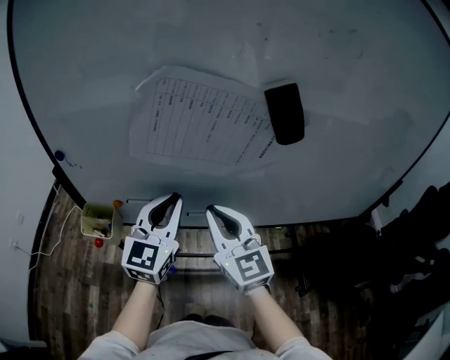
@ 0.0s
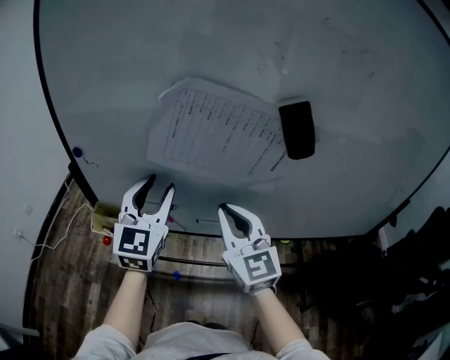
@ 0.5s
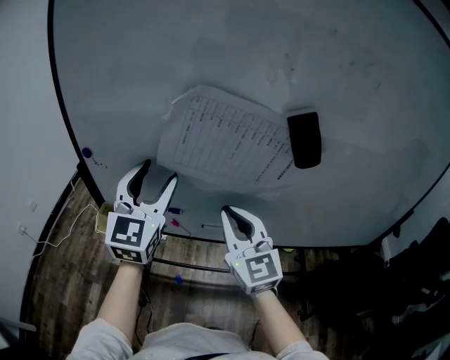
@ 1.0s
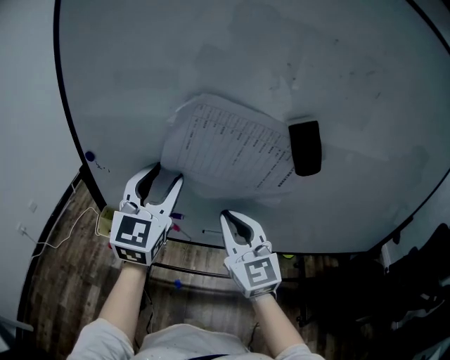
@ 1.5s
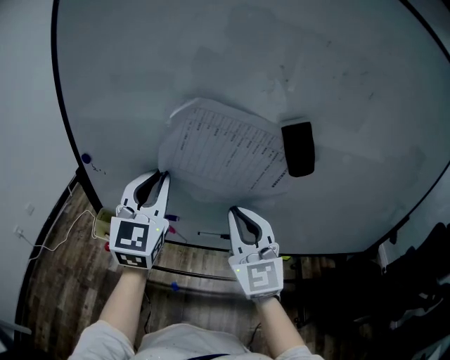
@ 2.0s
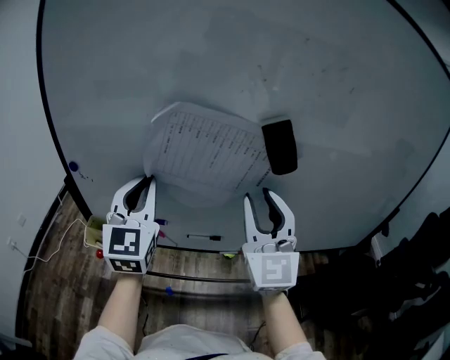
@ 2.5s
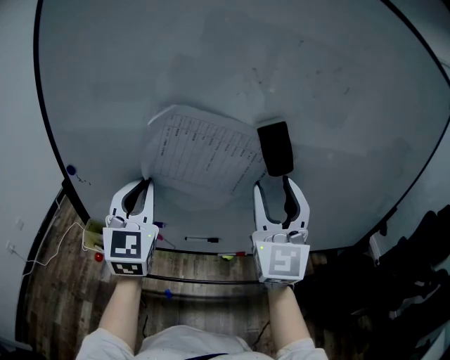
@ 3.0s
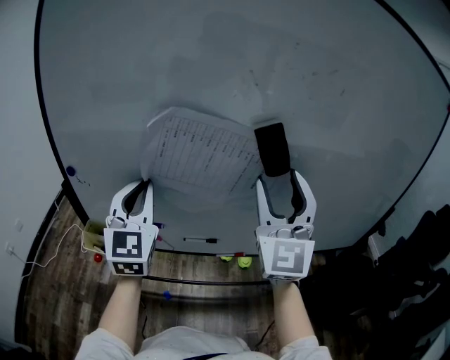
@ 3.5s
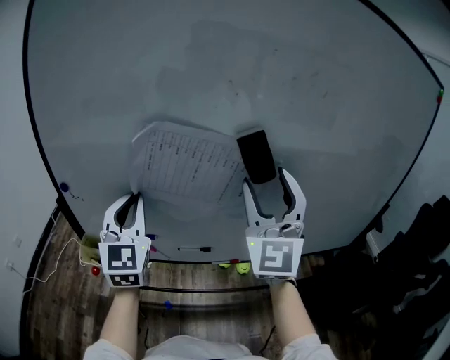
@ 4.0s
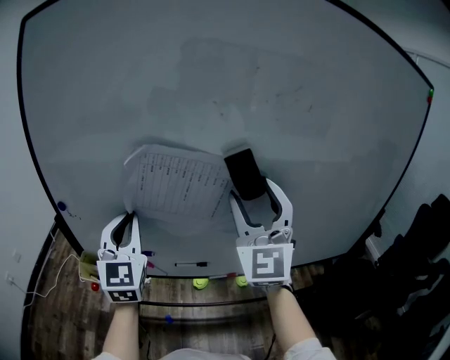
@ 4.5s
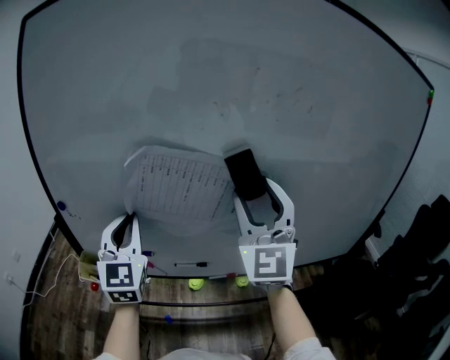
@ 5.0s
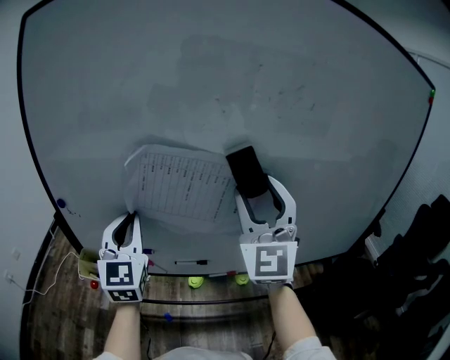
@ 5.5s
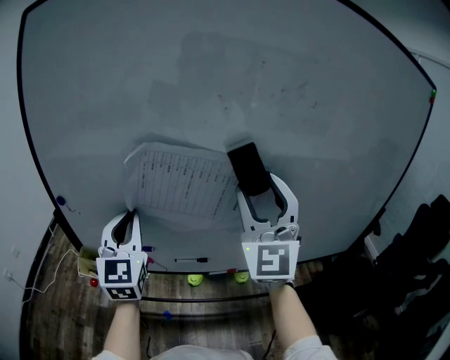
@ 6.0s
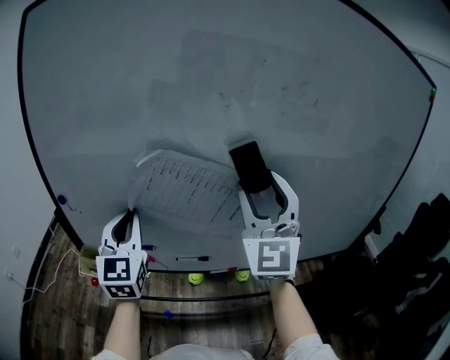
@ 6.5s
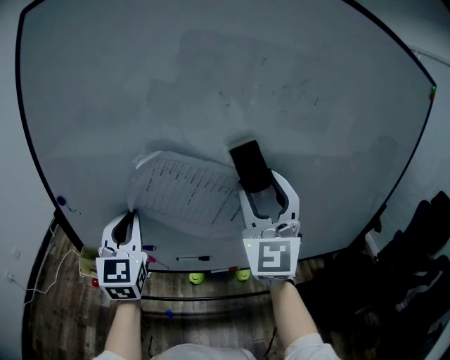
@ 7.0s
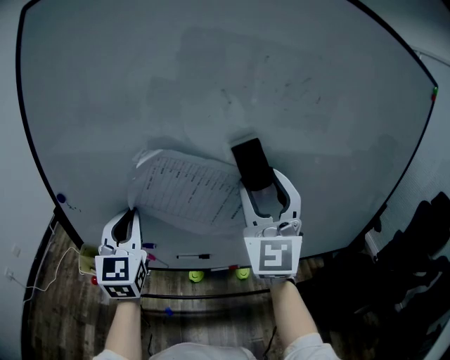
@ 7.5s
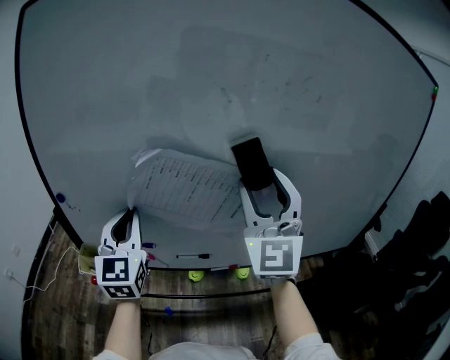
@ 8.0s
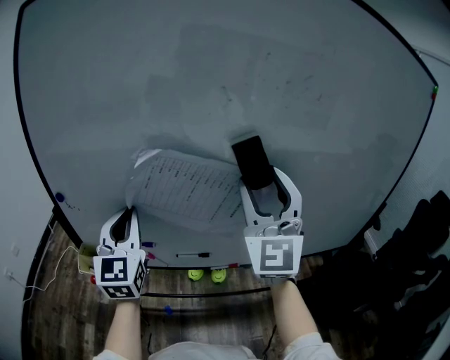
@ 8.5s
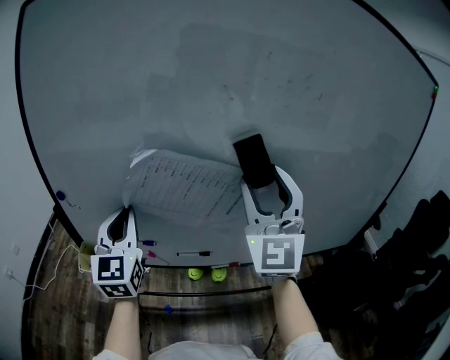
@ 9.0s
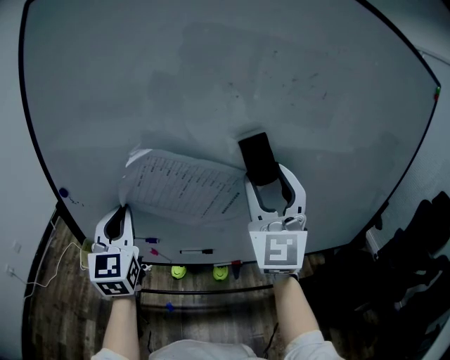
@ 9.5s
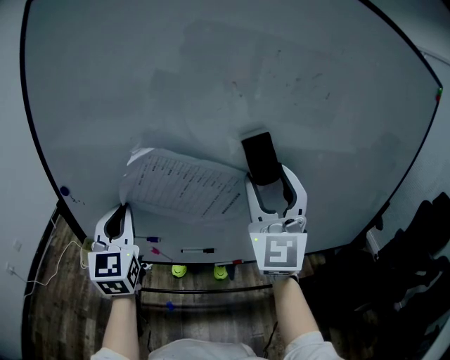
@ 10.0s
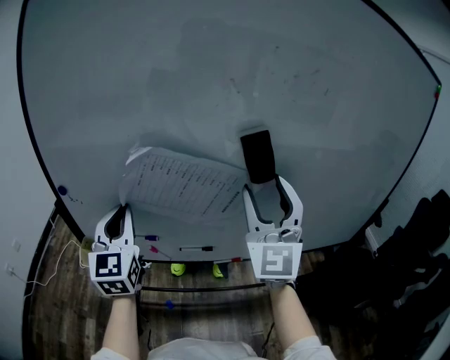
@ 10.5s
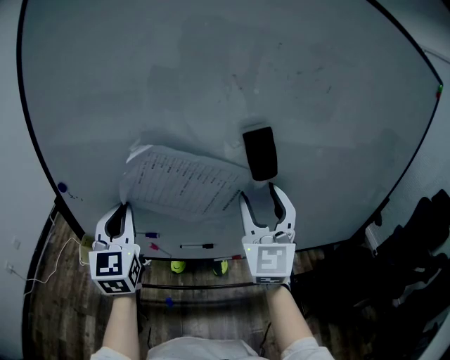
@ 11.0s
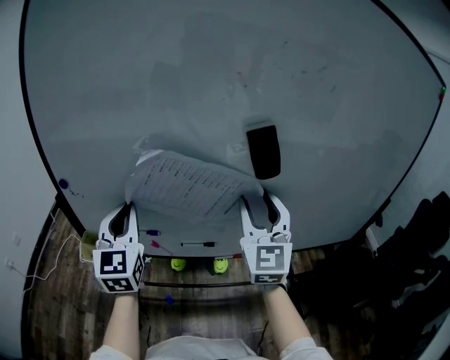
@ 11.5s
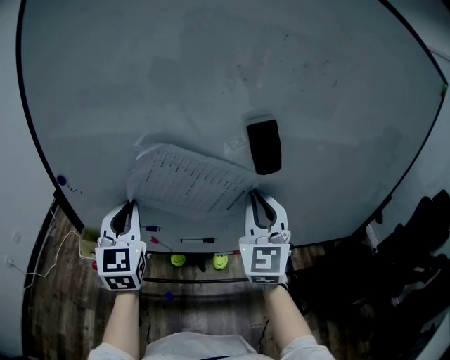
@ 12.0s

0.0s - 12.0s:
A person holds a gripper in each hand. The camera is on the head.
0.0s - 2.0s: The left gripper heads upward and to the left, covering approximately 15 cm, and opens and closes again, while the right gripper moves upward, some 5 cm.
2.0s - 4.0s: The right gripper shifts some 15 cm upward and to the right, turns by some 30 degrees, and opens up.
4.0s - 10.0s: The grippers make only small movements.
10.0s - 12.0s: The right gripper goes roughly 10 cm downward, and closes its fingers.

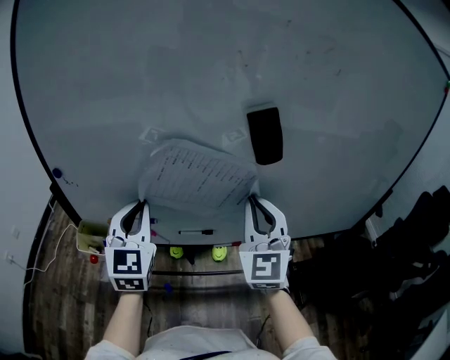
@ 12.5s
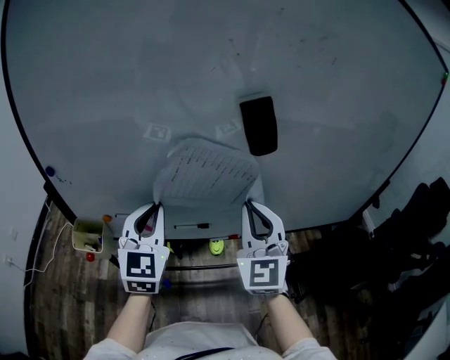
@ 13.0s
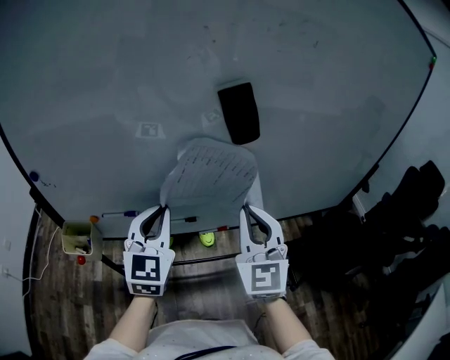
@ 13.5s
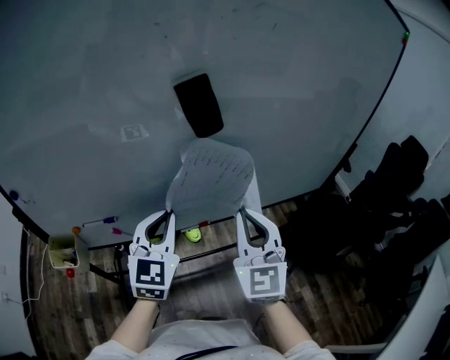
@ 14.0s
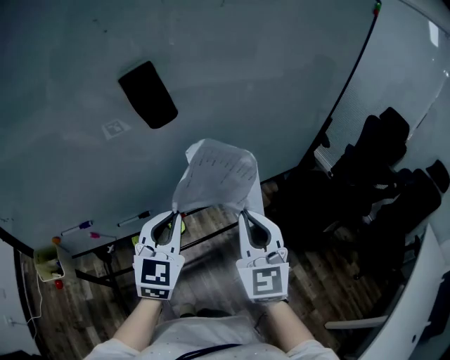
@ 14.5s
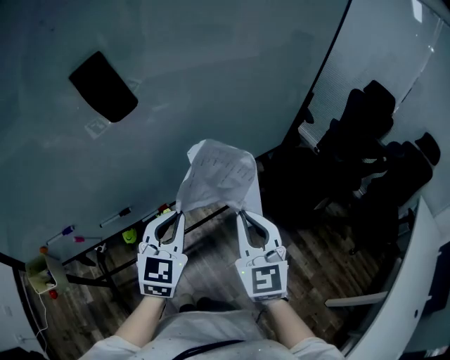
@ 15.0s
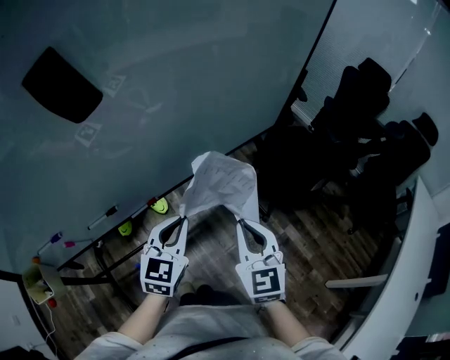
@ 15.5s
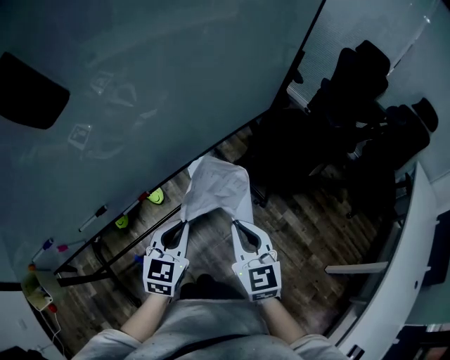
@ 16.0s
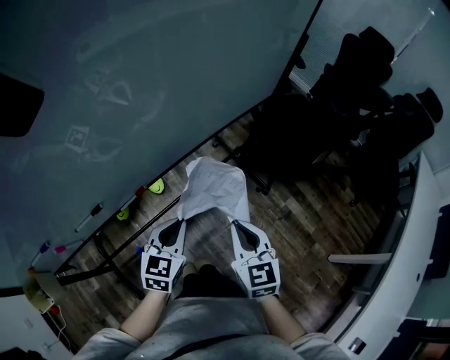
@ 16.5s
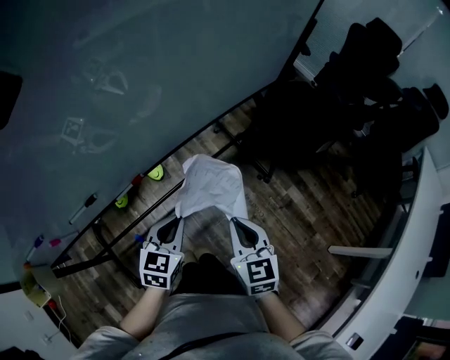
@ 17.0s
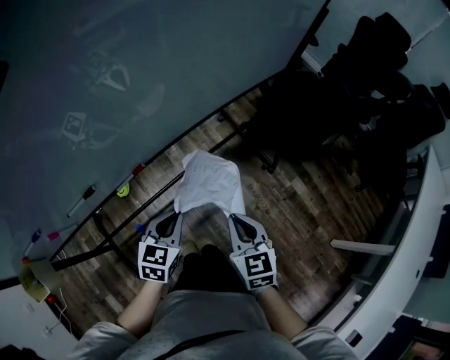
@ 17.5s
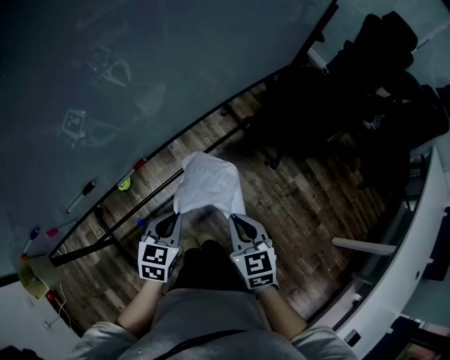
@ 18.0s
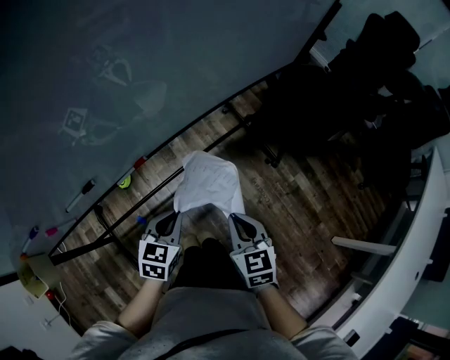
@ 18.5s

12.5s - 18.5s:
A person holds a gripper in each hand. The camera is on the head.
12.5s - 14.5s: The left gripper changes place by approximately 30 cm, and changes its angle by roughly 40 degrees. The right gripper changes place by roughly 20 cm.
14.5s - 16.5s: The two grippers go approximately 25 cm downward and to the right. The right gripper changes its angle by roughly 40 degrees. The left gripper swivels approximately 30 degrees.
16.5s - 18.5s: The two grippers go some 10 cm downward.

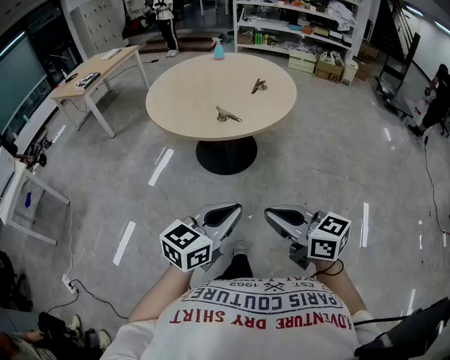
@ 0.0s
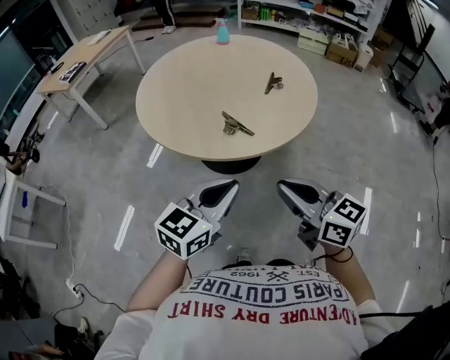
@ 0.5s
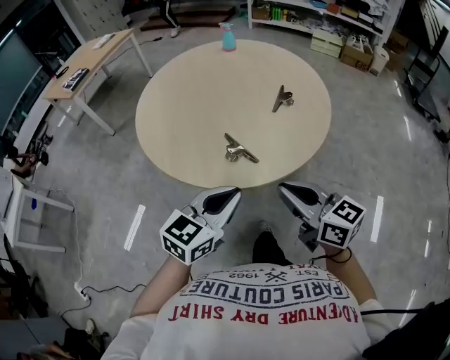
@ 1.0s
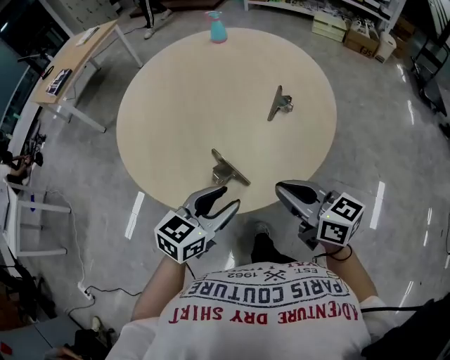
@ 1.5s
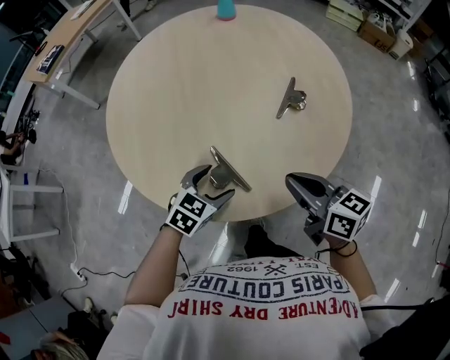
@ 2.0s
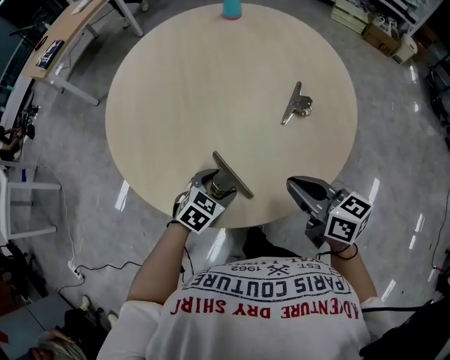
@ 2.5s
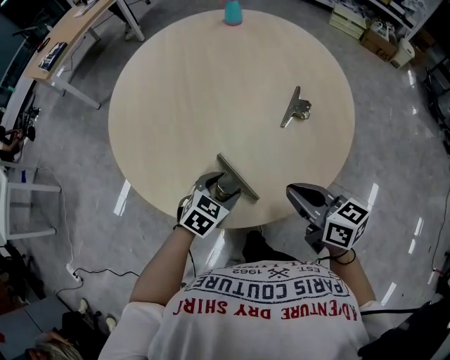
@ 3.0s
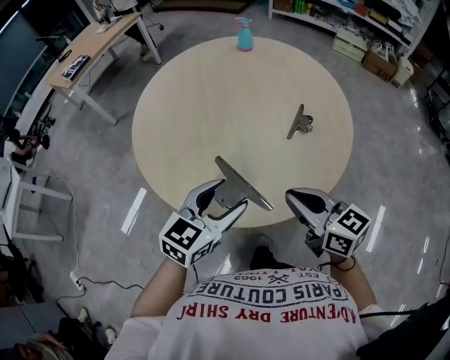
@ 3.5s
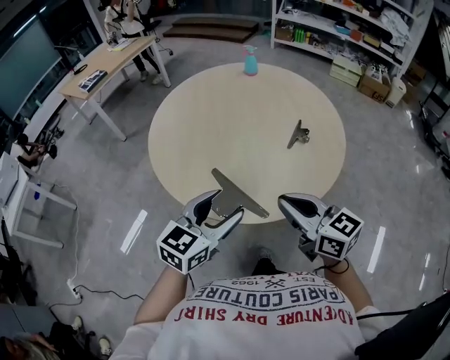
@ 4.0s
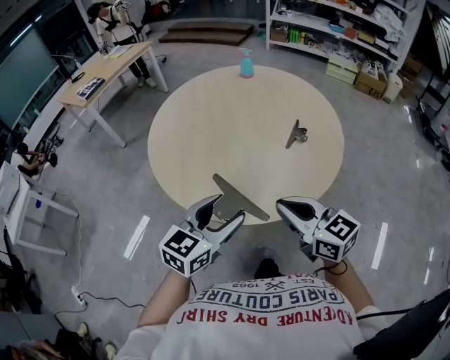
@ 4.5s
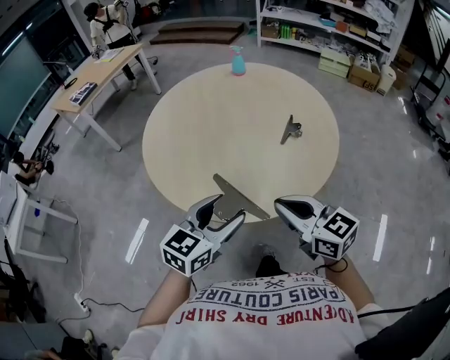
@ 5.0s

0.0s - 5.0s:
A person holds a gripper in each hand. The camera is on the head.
0.0s - 2.5s: The two grippers travel together, forward, approximately 60 cm. The left gripper travels downward by roughly 25 cm, points its fingers approximately 40 degrees further downward, and opens up.
2.5s - 5.0s: The left gripper heads upward and backward, covering some 25 cm, and angles its fingers upward, by about 30 degrees. The right gripper heads backward, upward and to the left, covering about 20 cm, and turns by about 20 degrees.

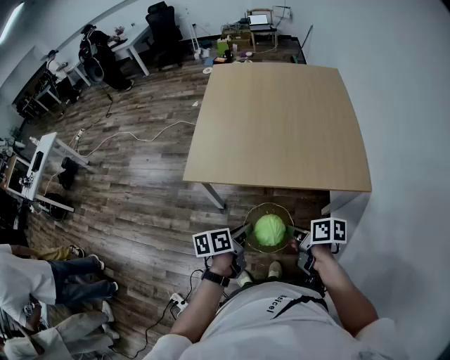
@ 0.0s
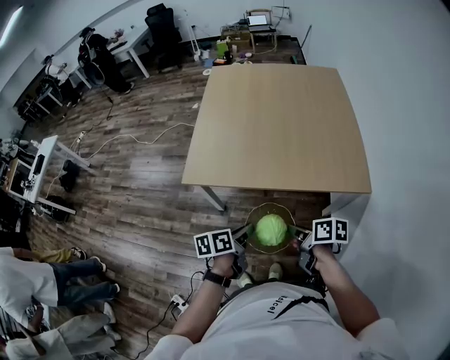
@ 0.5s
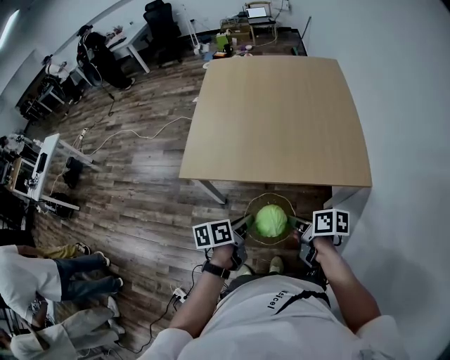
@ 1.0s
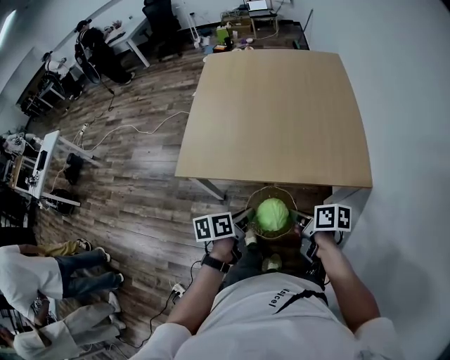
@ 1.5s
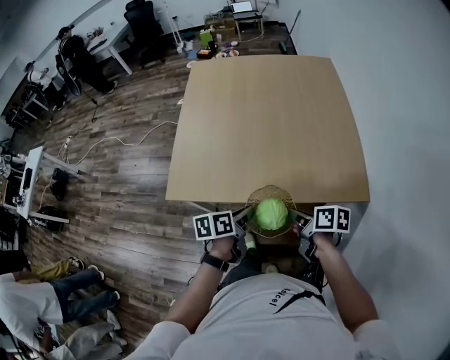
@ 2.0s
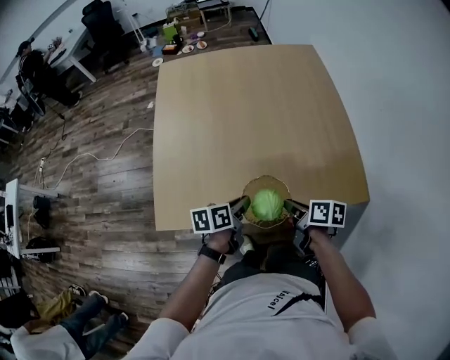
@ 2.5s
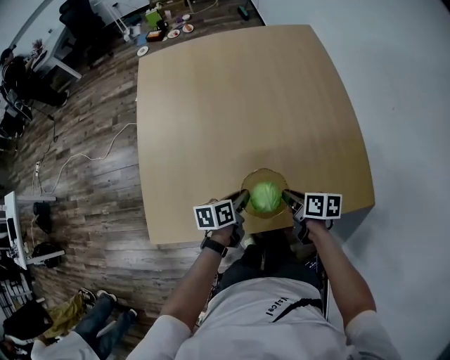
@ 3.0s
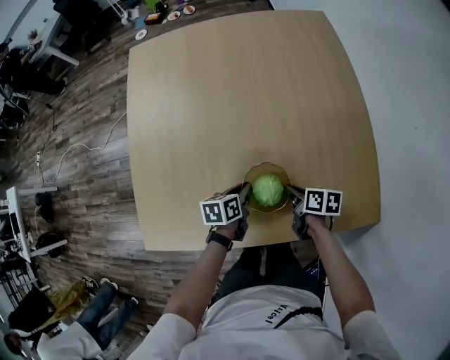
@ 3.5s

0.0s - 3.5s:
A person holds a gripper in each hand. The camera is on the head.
0.0s - 2.0s: Both grippers move forward and to the right, about 15 cm.
2.0s - 3.5s: The grippers both shift forward and downward by about 35 cm.
